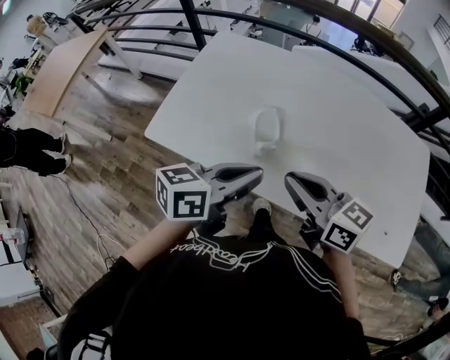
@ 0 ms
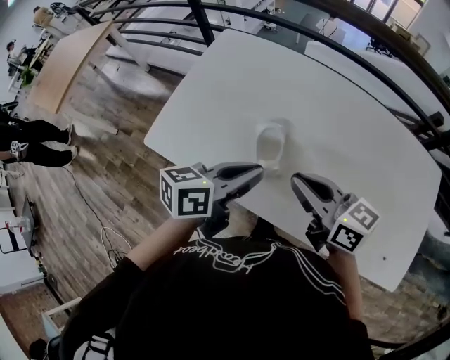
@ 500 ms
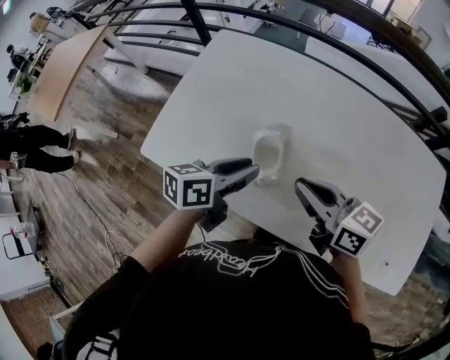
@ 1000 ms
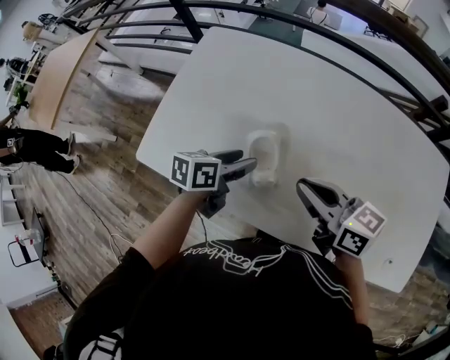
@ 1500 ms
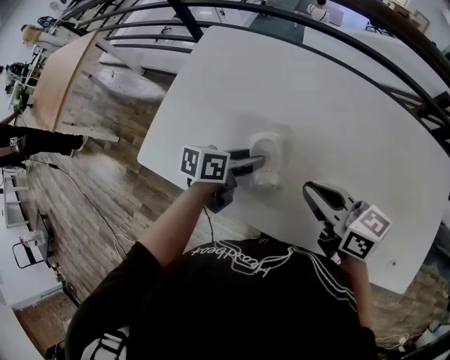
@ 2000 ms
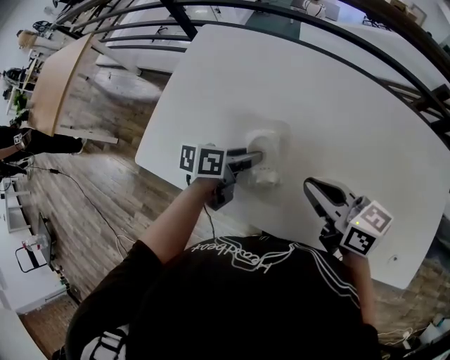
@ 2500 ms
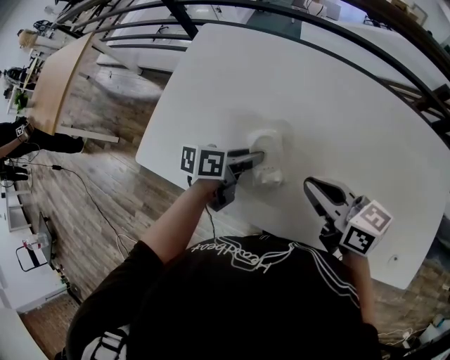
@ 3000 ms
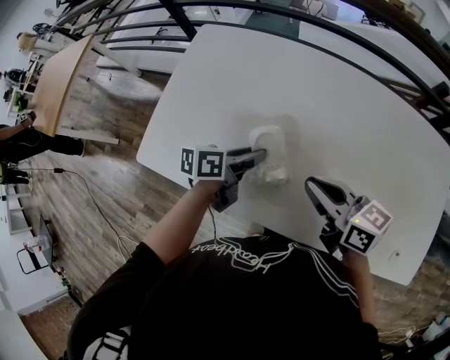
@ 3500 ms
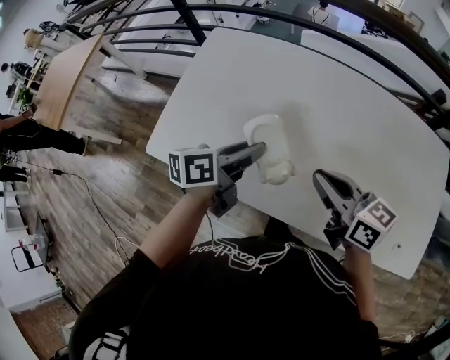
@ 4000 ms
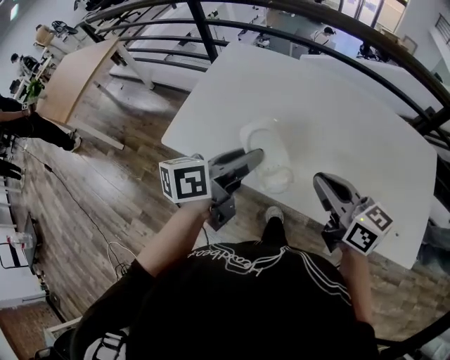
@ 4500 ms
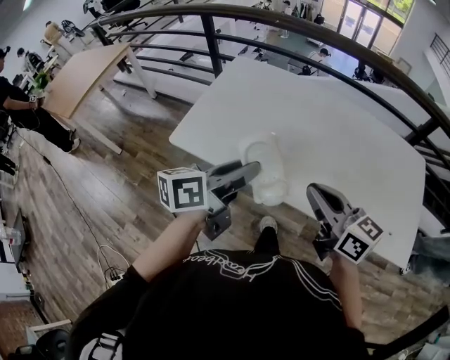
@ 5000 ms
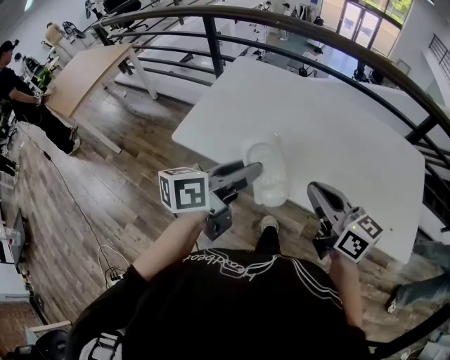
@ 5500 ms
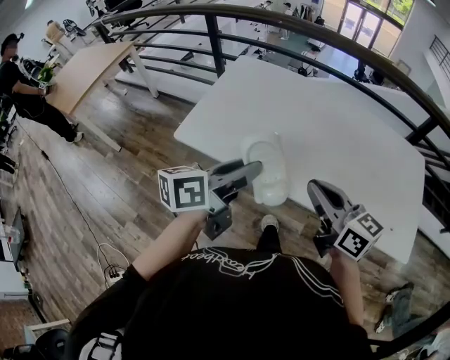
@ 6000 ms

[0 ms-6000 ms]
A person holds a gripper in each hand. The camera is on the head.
0 ms to 2000 ms: The left gripper is displaced downward and forward by roughly 25 cm, rotates some 20 degrees, and opens, while the right gripper travels forward and downward by about 10 cm.
2000 ms to 4000 ms: The left gripper moves upward, some 10 cm, and closes its fingers.
4000 ms to 6000 ms: The right gripper travels backward by about 15 cm, while the left gripper goes approximately 25 cm backward and upward.

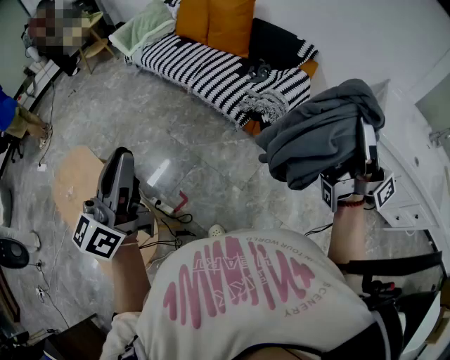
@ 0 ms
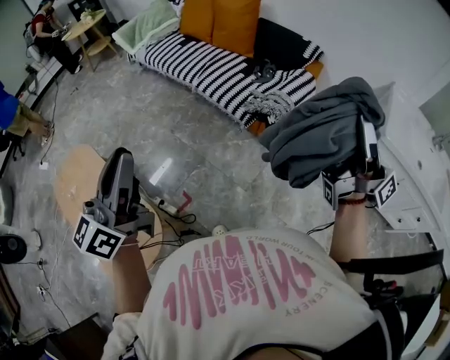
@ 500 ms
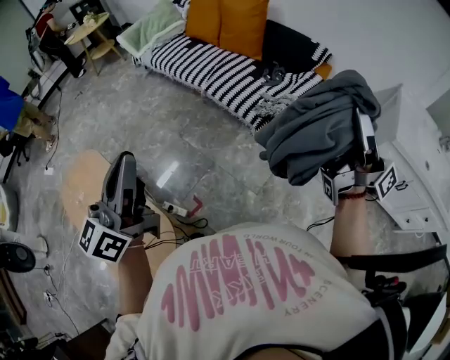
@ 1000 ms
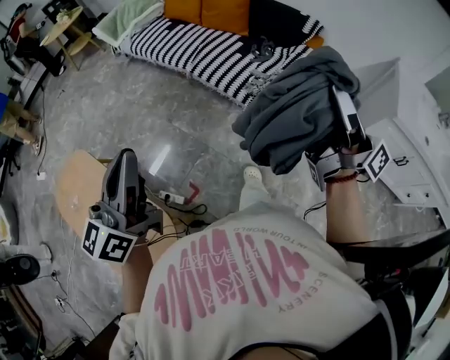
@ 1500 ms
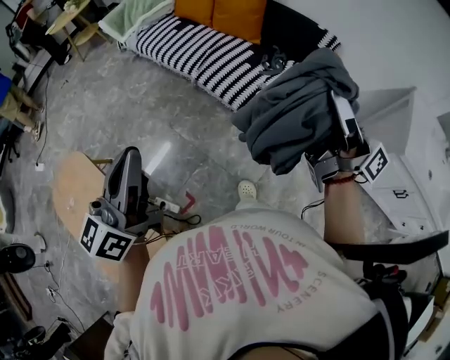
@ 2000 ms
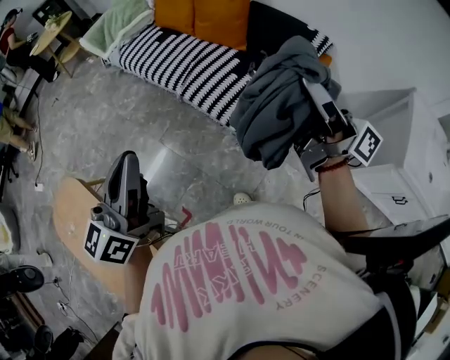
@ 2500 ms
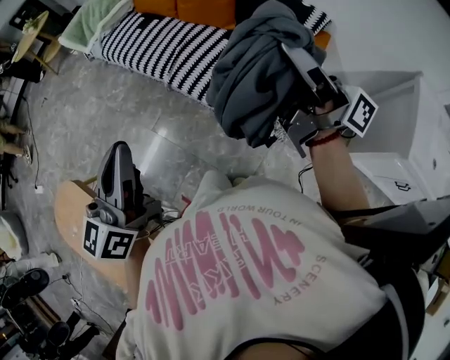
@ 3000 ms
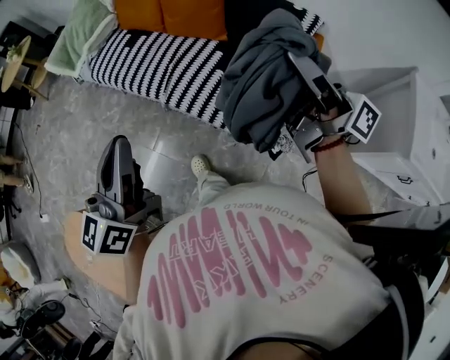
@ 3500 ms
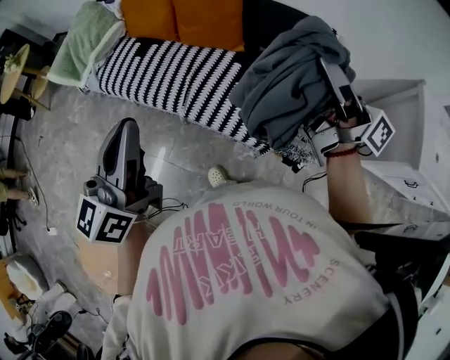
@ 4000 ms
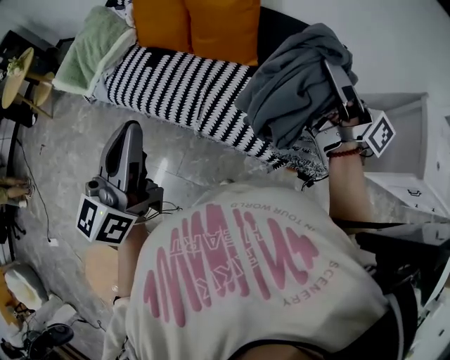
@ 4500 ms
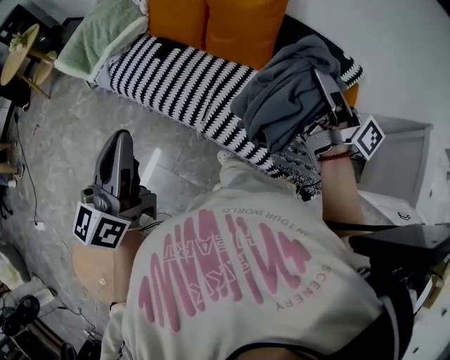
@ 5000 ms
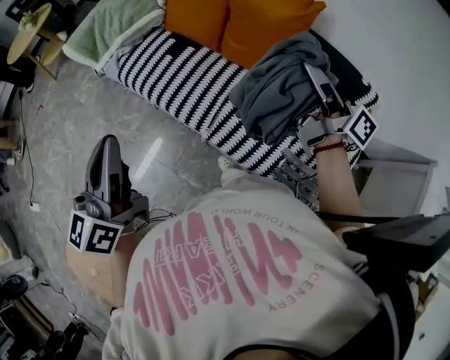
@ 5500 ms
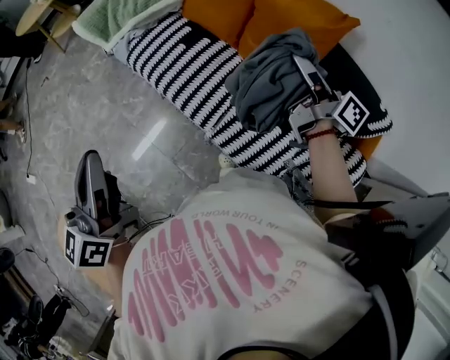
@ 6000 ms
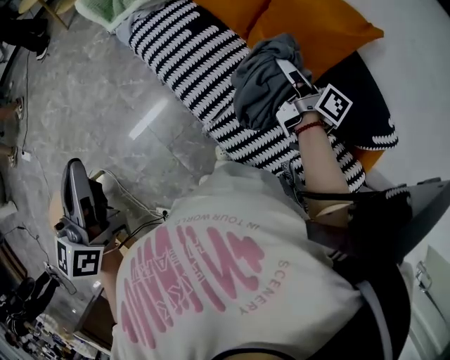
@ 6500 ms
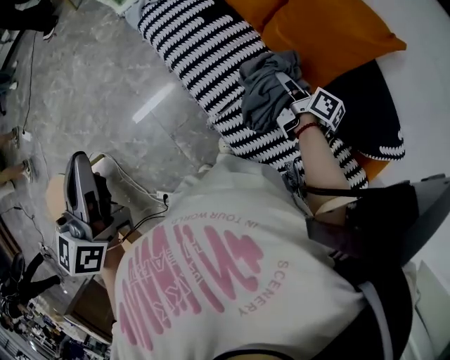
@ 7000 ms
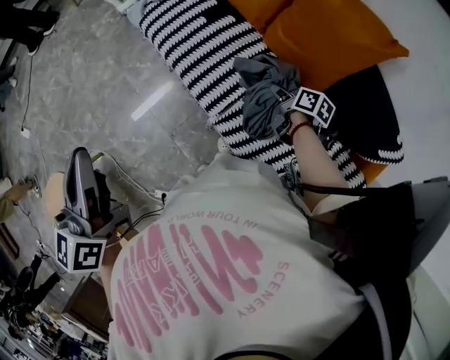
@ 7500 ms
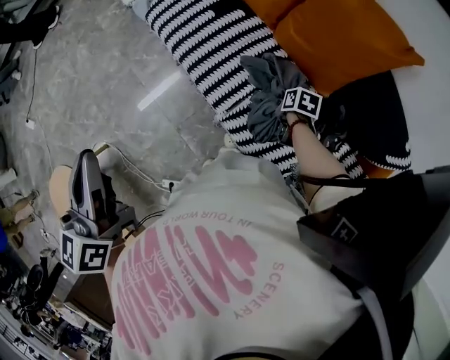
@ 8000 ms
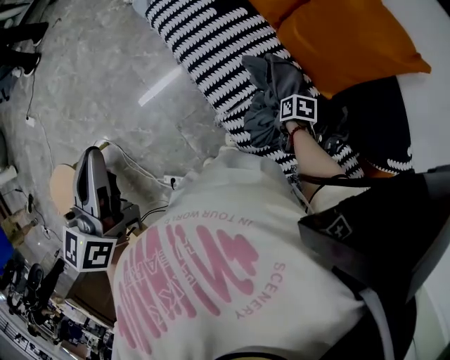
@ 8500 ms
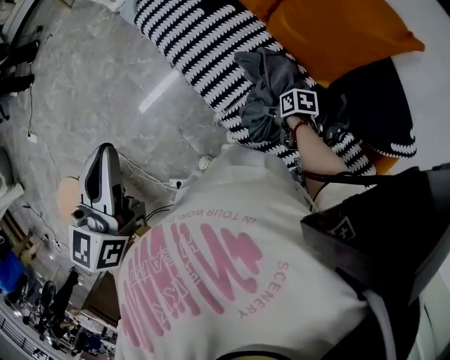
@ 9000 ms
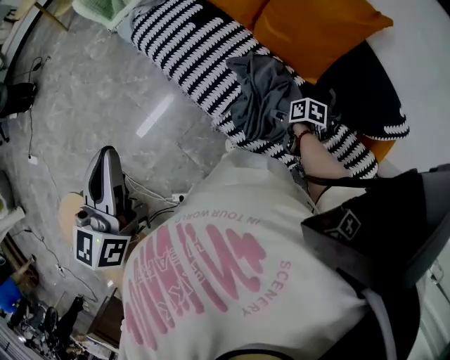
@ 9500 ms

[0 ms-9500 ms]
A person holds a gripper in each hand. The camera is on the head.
0 ms to 2000 ms: The left gripper heads forward, covering some 15 cm. The right gripper moves forward and to the left, about 20 cm.
2000 ms to 4000 ms: Both grippers move forward, about 30 cm.
4000 ms to 5500 ms: The left gripper goes about 15 cm to the left and forward; the right gripper is displaced forward and to the left by about 25 cm.
5500 ms to 7500 ms: The right gripper travels downward by roughly 30 cm, and angles its fingers downward, by about 60 degrees. Meanwhile the left gripper changes its angle by approximately 30 degrees.
7500 ms to 9500 ms: The left gripper goes about 5 cm to the right. The right gripper is displaced backward by roughly 10 cm, travels downward and back again, about 10 cm each way, swivels some 20 degrees, and opens up.

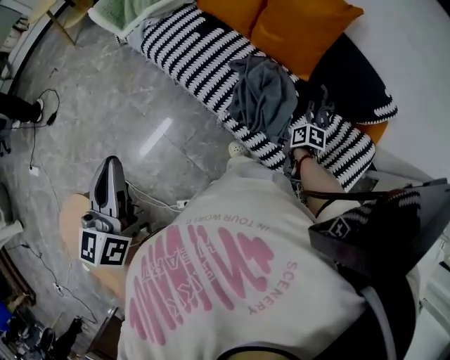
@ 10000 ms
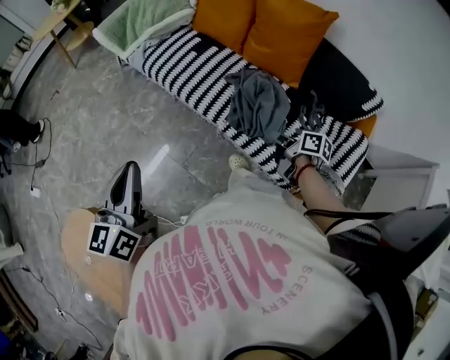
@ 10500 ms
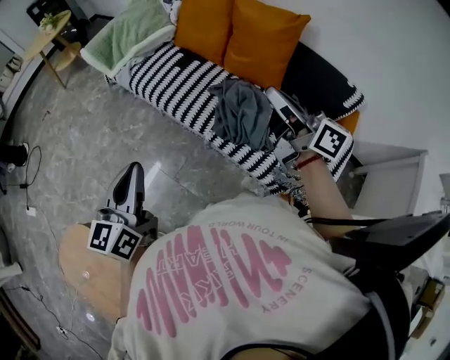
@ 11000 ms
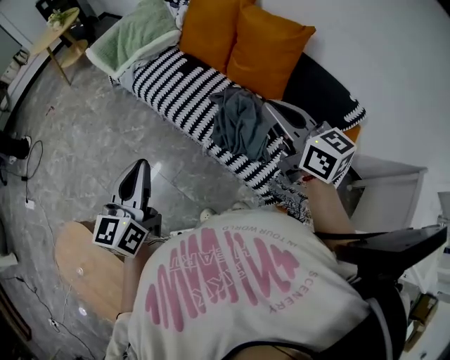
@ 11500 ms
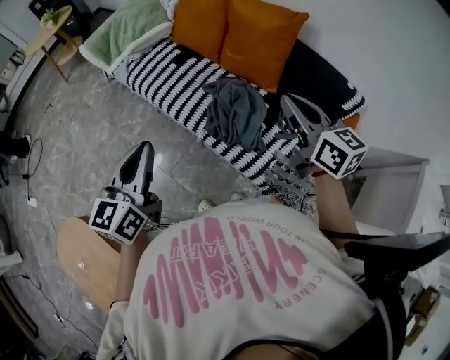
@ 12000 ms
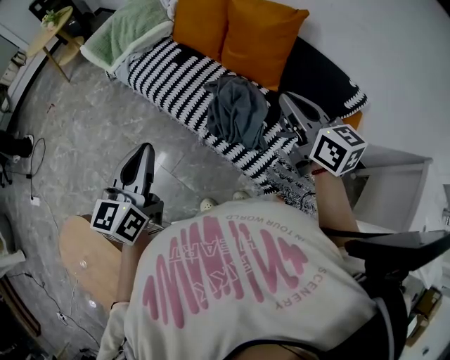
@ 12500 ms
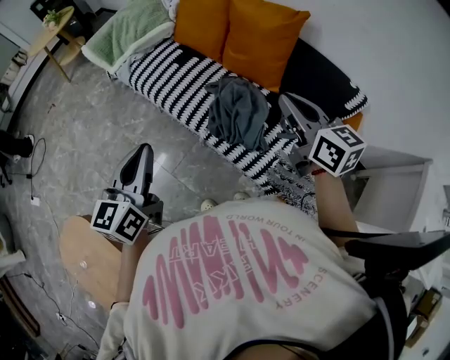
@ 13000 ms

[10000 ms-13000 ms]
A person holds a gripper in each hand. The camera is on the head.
10000 ms to 11500 ms: The right gripper travels upward by roughly 40 cm, tilts its fingers some 50 degrees upward, and closes its fingers, while the left gripper heads to the right, covering approximately 5 cm.
11500 ms to 13000 ms: The right gripper shifts roughly 5 cm to the right.

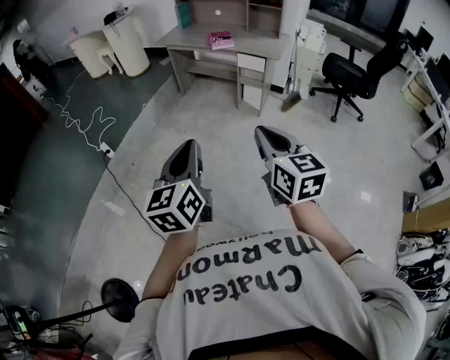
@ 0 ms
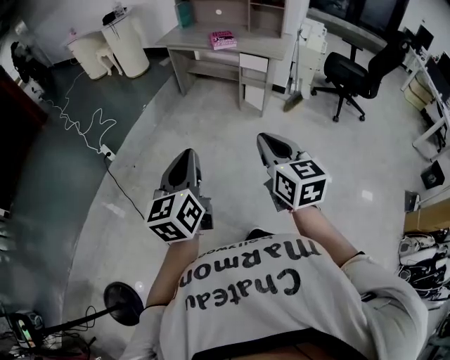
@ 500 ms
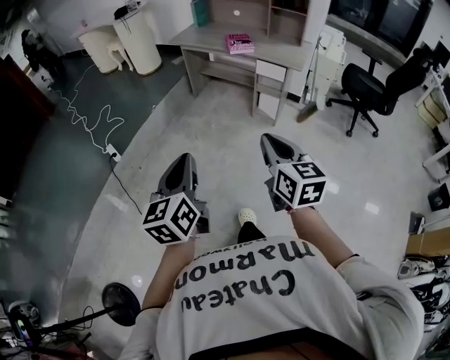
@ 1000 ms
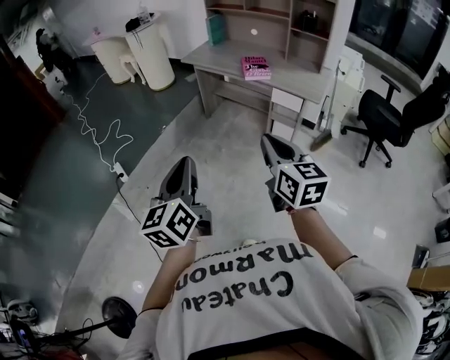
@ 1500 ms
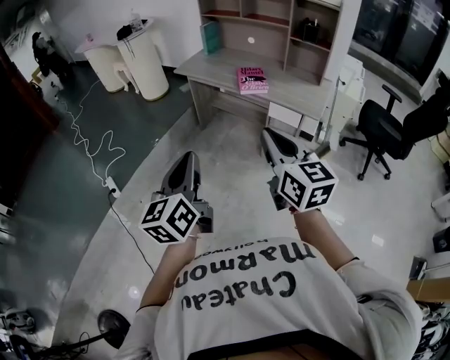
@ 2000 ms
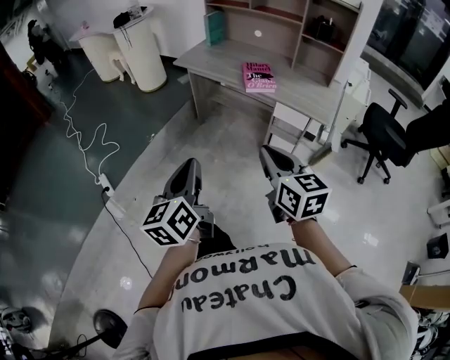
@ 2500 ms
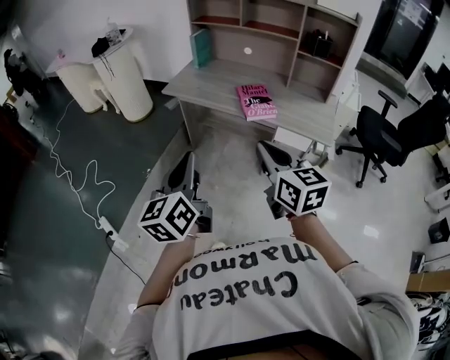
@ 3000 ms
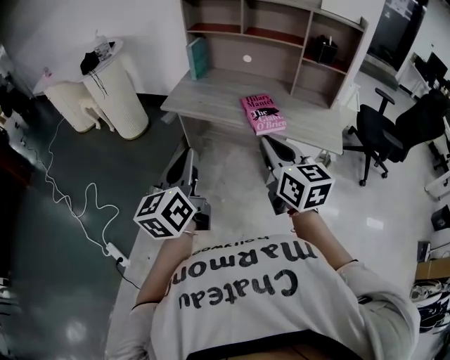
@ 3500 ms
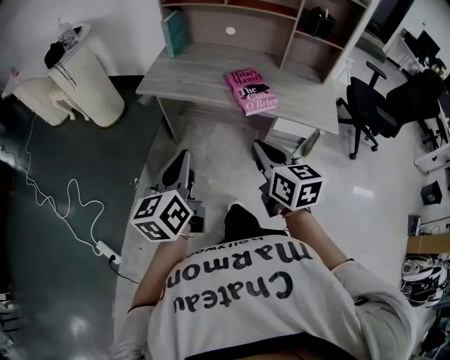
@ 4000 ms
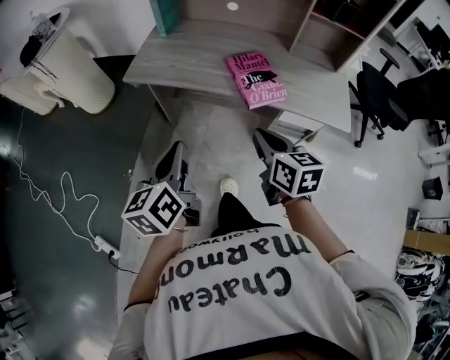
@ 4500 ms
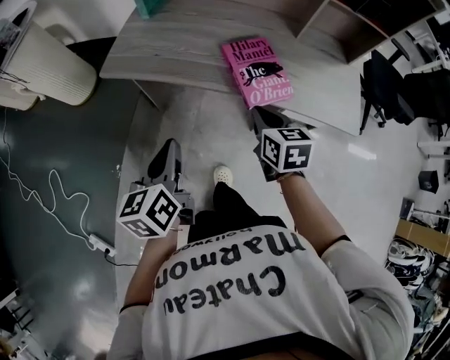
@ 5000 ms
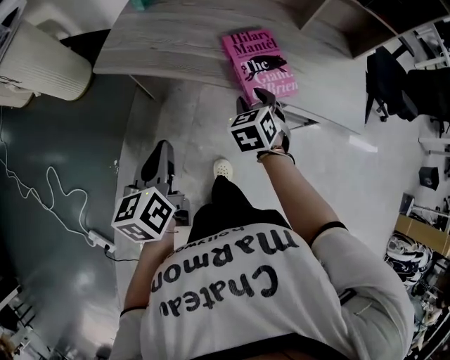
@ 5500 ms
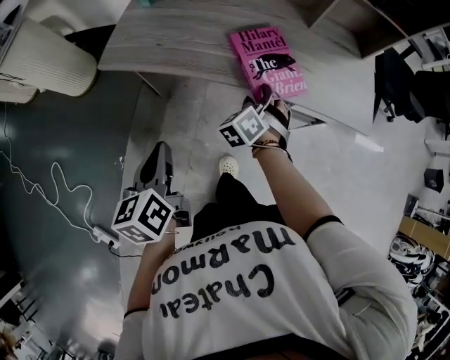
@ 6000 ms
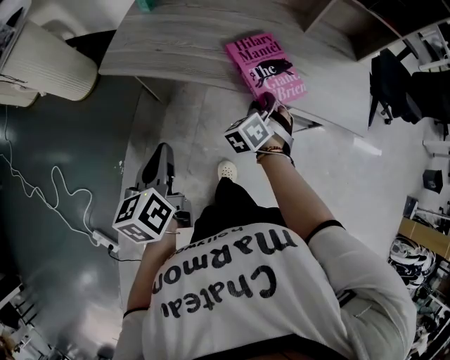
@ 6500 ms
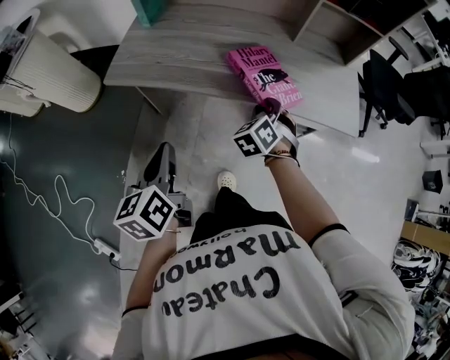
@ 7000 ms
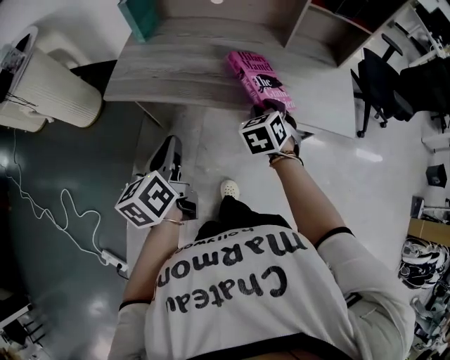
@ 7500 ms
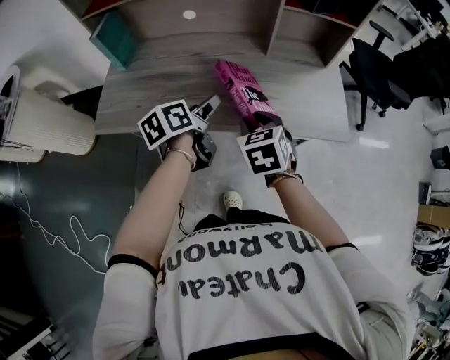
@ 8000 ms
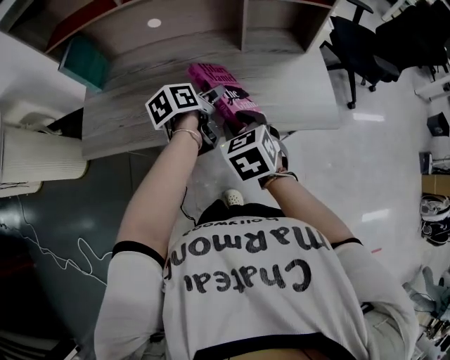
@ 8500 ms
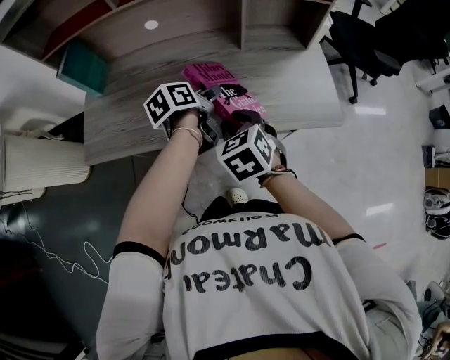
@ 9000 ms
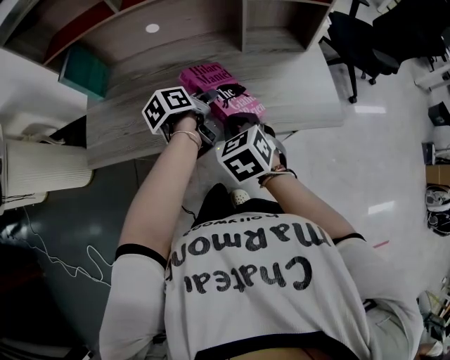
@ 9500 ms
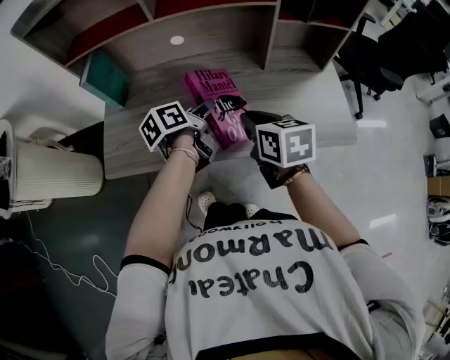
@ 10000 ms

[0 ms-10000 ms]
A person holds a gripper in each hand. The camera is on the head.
0 ms to 2000 ms: Both grippers move forward, roughly 35 cm.
2000 ms to 4000 ms: The two grippers go roughly 35 cm forward. The left gripper rotates roughly 20 degrees, while the right gripper turns by roughly 30 degrees.
4000 ms to 6000 ms: The left gripper heads forward and downward, covering roughly 20 cm, while the right gripper is displaced forward and downward by about 35 cm, rotates roughly 70 degrees, and opens its fingers.
6000 ms to 8000 ms: The left gripper shifts roughly 30 cm forward and to the right, swivels about 30 degrees, and opens its fingers. The right gripper shifts approximately 15 cm upward and to the right, rotates some 40 degrees, and closes up.
8000 ms to 10000 ms: The right gripper moves forward and upward, approximately 10 cm, changes its angle by some 30 degrees, and closes its fingers. The left gripper shifts some 10 cm forward, moves roughly 5 cm to the right and comes back, and closes its fingers.
